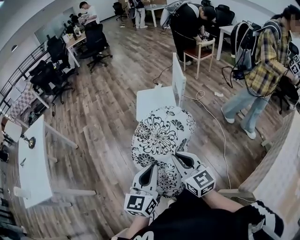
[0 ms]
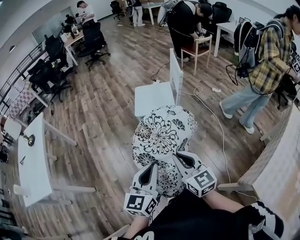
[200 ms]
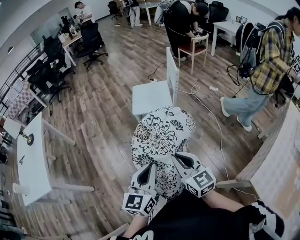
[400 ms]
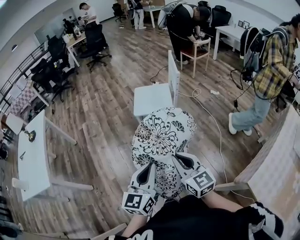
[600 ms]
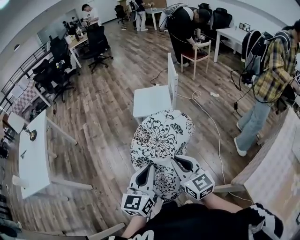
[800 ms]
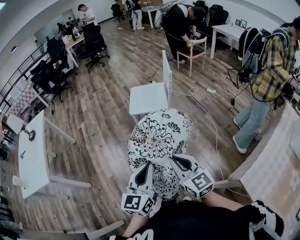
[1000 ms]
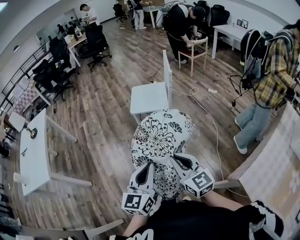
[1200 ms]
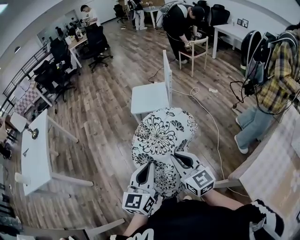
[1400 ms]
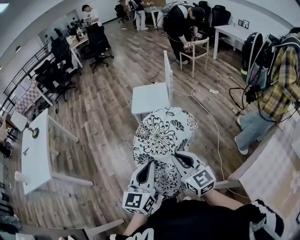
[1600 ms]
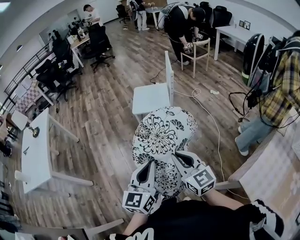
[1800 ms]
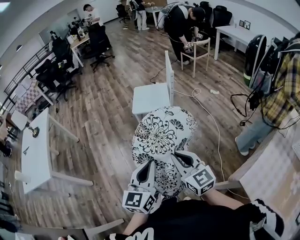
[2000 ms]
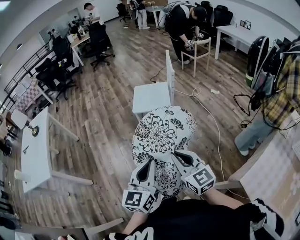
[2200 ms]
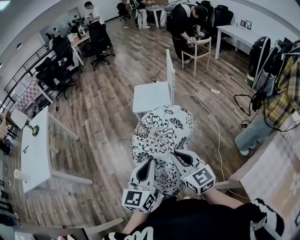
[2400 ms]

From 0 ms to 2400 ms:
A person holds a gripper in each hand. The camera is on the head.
From 0 ms to 1200 ms: The right gripper moves backward and to the right, about 15 cm. Meanwhile the left gripper is displaced backward by about 10 cm.
From 1200 ms to 2400 ms: Both grippers stay about where they are.

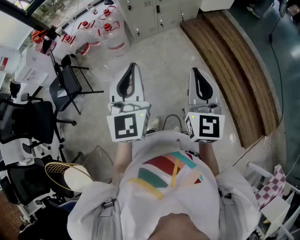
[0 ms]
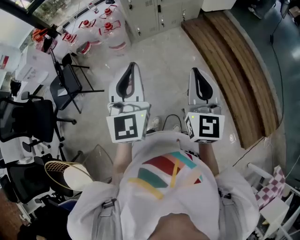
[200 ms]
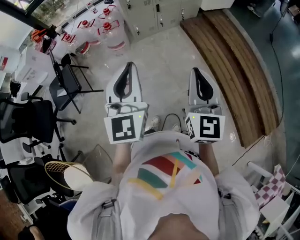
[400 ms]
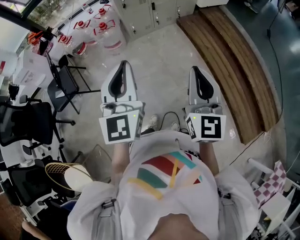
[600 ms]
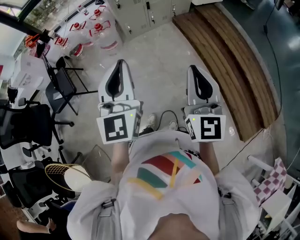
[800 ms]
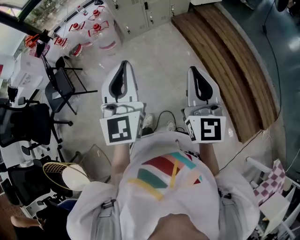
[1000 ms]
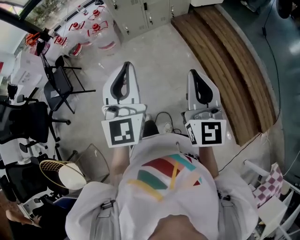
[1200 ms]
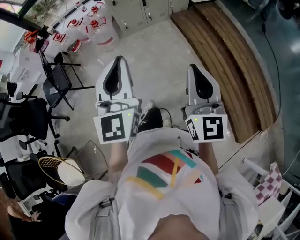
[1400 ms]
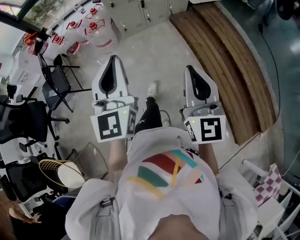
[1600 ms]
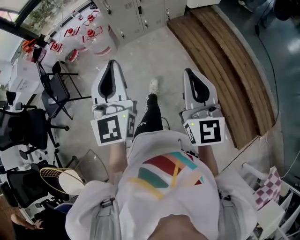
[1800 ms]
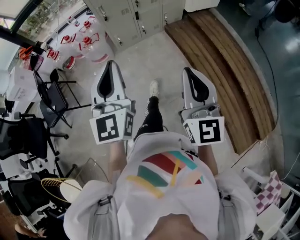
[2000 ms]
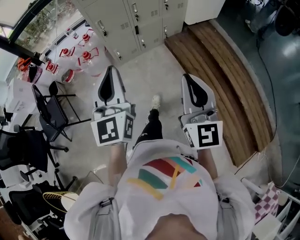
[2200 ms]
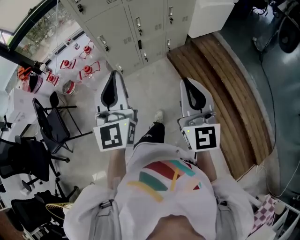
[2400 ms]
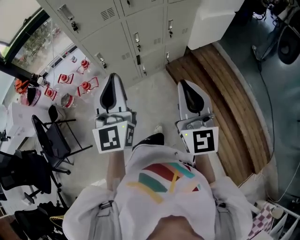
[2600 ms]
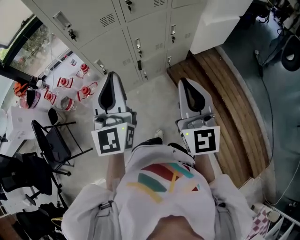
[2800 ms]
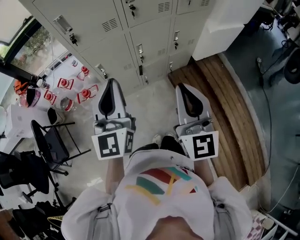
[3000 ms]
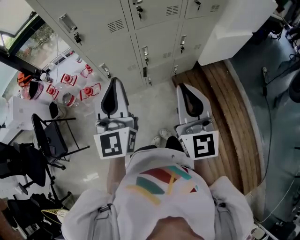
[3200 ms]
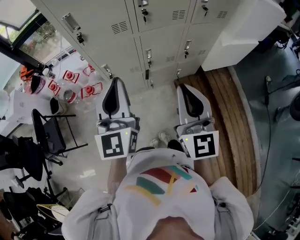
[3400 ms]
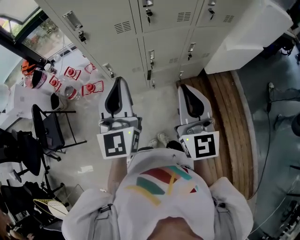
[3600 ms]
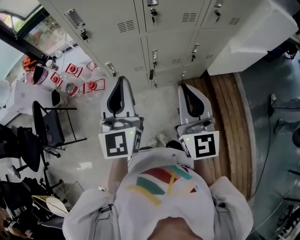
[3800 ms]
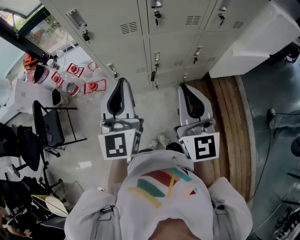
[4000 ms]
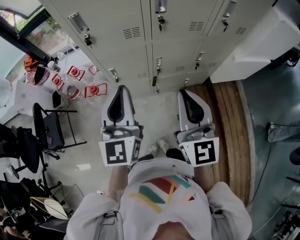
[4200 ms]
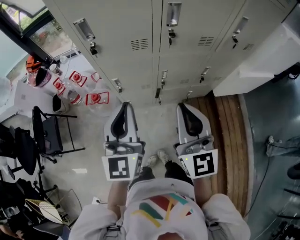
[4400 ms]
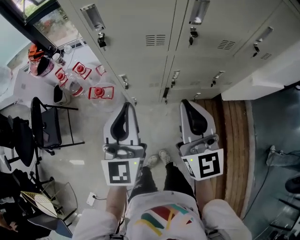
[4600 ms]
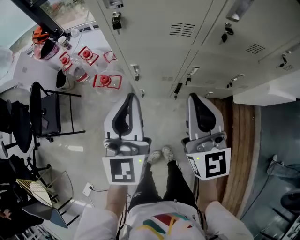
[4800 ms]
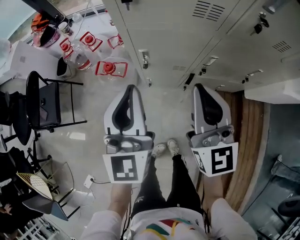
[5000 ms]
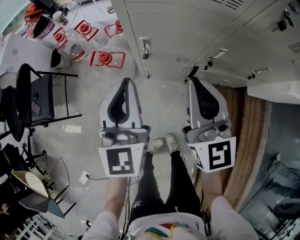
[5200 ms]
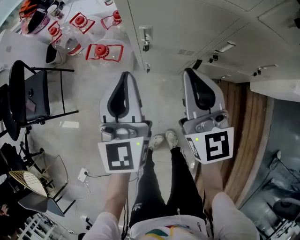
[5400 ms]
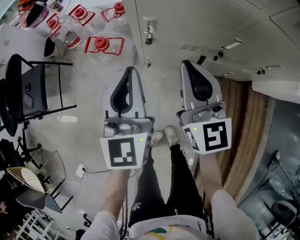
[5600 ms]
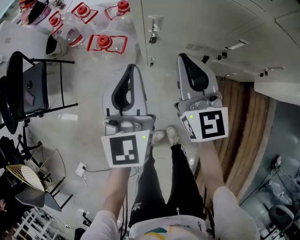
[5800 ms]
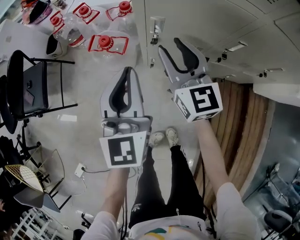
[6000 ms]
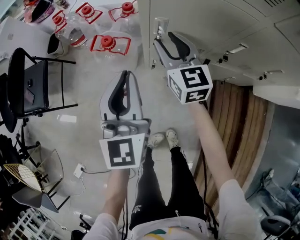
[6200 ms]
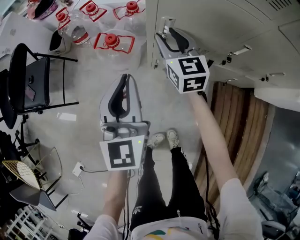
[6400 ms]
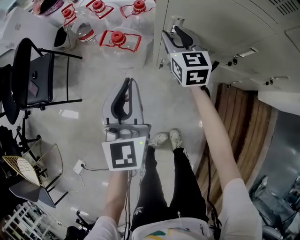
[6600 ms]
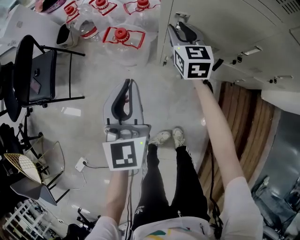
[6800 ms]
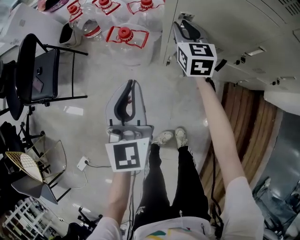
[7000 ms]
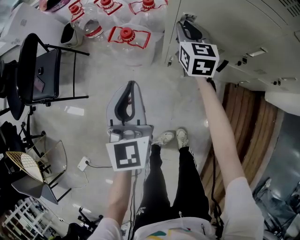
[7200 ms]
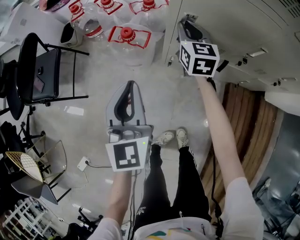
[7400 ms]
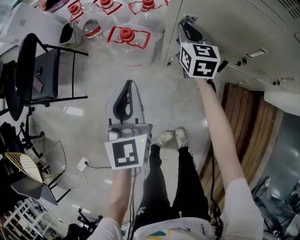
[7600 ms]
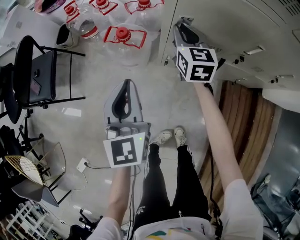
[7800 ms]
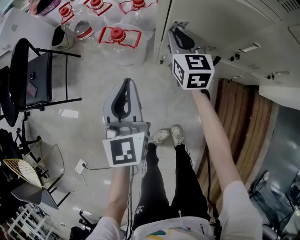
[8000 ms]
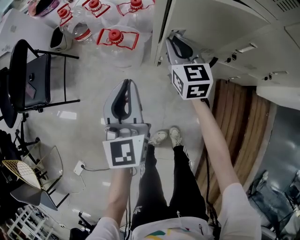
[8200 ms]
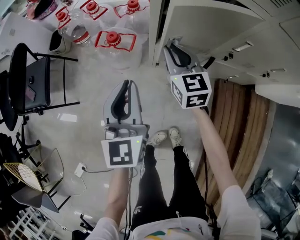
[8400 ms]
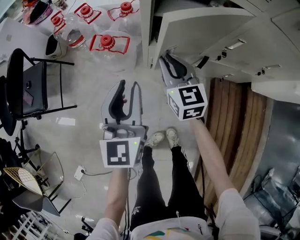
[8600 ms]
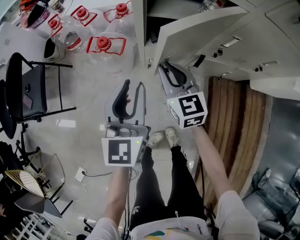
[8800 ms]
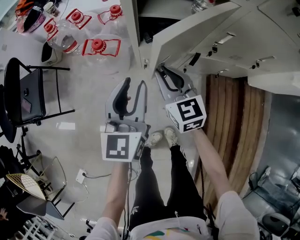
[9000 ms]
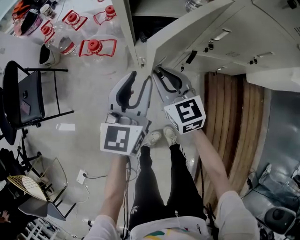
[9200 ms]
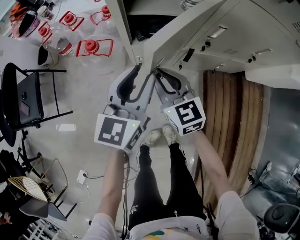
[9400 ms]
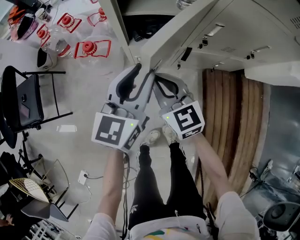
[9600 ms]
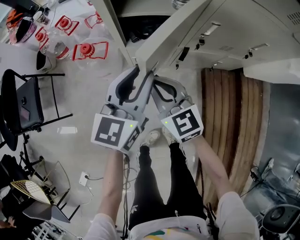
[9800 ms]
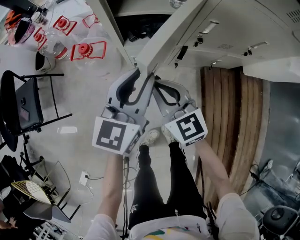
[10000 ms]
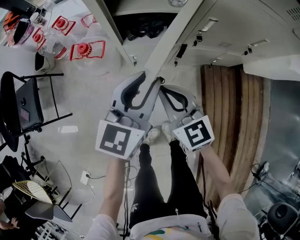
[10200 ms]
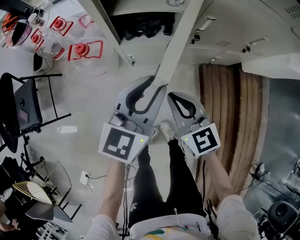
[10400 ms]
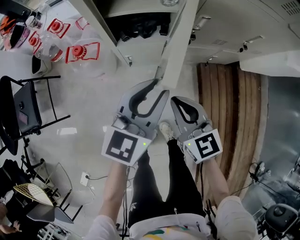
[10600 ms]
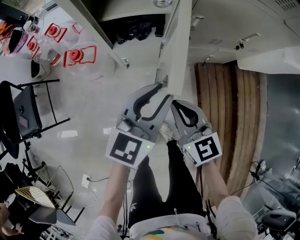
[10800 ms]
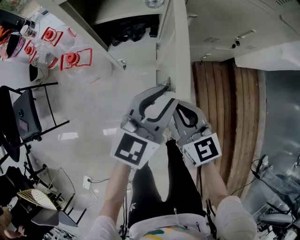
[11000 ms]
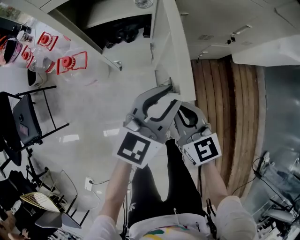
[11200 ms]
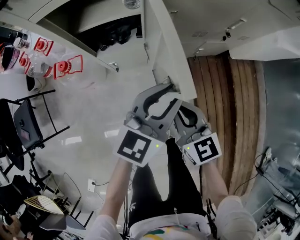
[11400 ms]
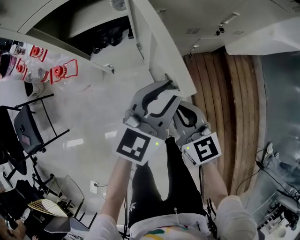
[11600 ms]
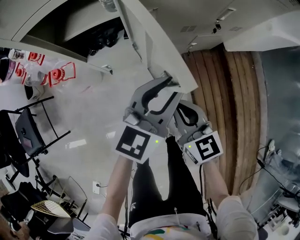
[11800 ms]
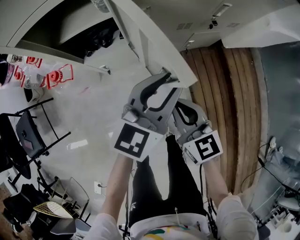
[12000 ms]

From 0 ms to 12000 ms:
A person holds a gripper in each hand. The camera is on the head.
From 0 ms to 1600 ms: The grippers both shift to the right by roughly 10 cm.
From 1600 ms to 3000 ms: The two grippers travel together, forward, roughly 50 cm.
From 3000 ms to 4400 ms: The left gripper moves forward, about 10 cm; the right gripper moves forward, roughly 15 cm.
From 4400 ms to 6000 ms: The right gripper heads downward, forward and to the left, covering about 40 cm, rotates about 20 degrees, and opens its fingers; the left gripper travels downward, to the left and forward by approximately 30 cm.
From 6000 ms to 7600 ms: The right gripper heads forward and downward, covering approximately 10 cm, and closes up. Meanwhile the left gripper is displaced to the left by roughly 10 cm.
From 7600 ms to 9000 ms: The right gripper moves backward, roughly 15 cm; the left gripper travels to the right by some 10 cm, and opens up.
From 9000 ms to 10400 ms: The left gripper shifts some 15 cm to the right, and rotates roughly 30 degrees. The right gripper heads backward and to the right, covering approximately 15 cm.
From 10400 ms to 12000 ms: The two grippers go roughly 15 cm to the right.

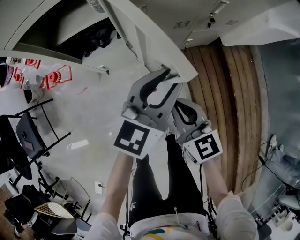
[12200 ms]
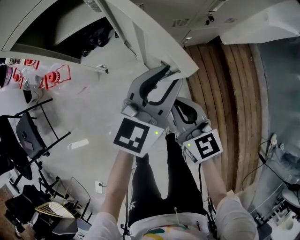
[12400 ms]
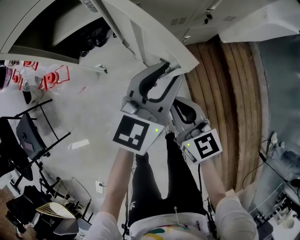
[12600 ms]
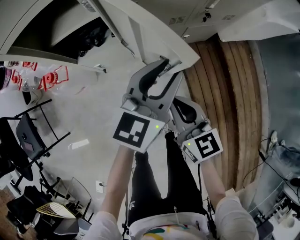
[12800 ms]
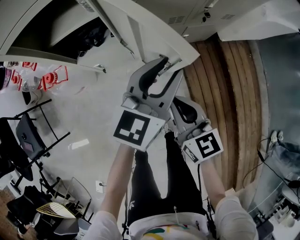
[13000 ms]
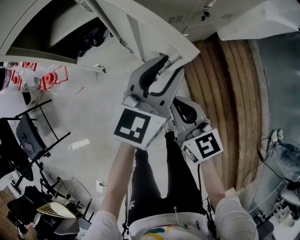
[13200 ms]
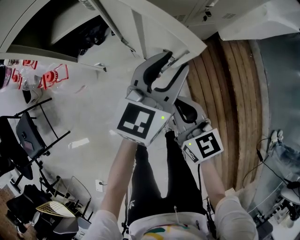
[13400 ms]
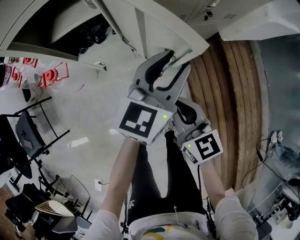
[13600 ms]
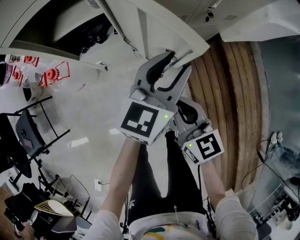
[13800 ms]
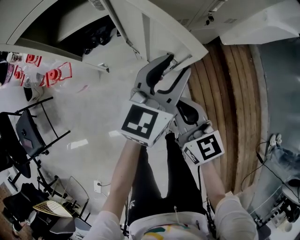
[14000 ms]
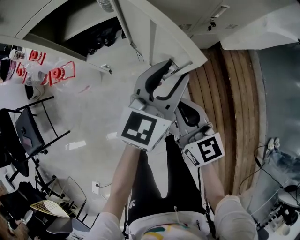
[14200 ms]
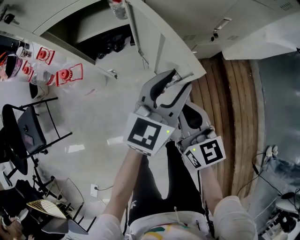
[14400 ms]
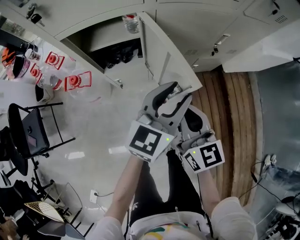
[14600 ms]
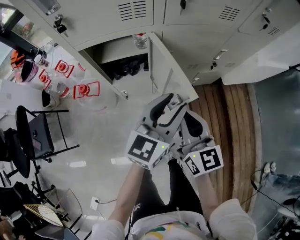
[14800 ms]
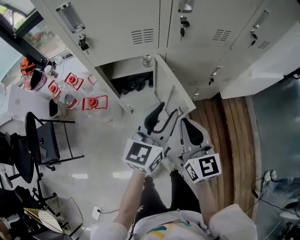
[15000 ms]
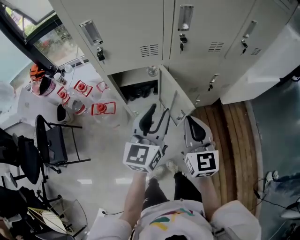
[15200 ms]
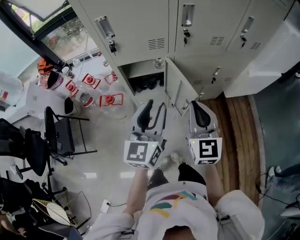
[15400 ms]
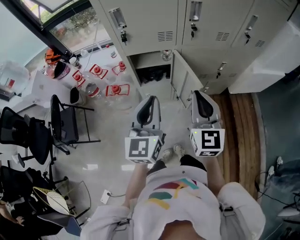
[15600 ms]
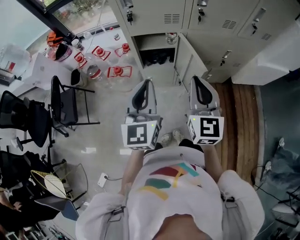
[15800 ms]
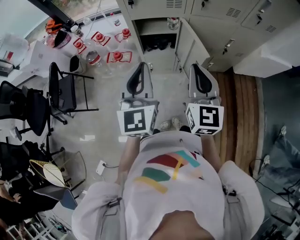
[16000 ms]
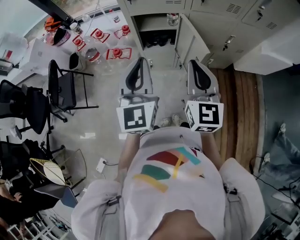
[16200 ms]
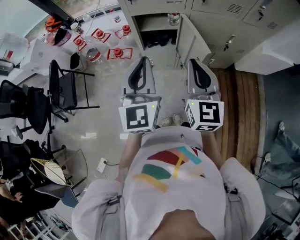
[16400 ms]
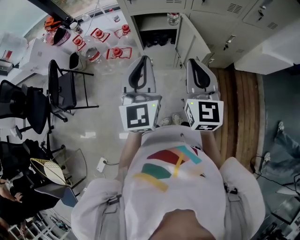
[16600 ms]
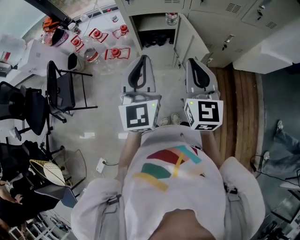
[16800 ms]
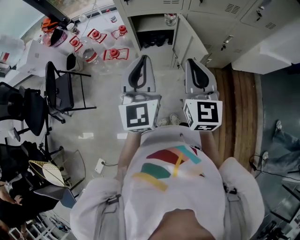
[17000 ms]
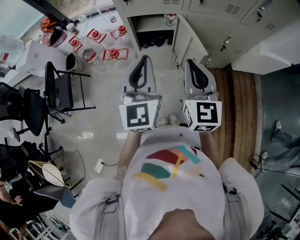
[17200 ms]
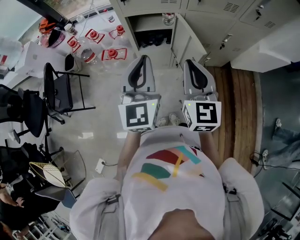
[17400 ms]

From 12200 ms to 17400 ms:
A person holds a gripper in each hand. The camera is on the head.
From 12200 ms to 14000 ms: The grippers move only a little.
From 14000 ms to 15600 ms: The left gripper travels upward, to the left and backward by approximately 35 cm, swivels approximately 40 degrees, and closes. The right gripper is displaced upward by roughly 30 cm, and changes its angle by about 30 degrees.
From 15600 ms to 17400 ms: The grippers stay close to where they were, moving slightly.

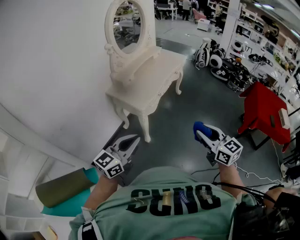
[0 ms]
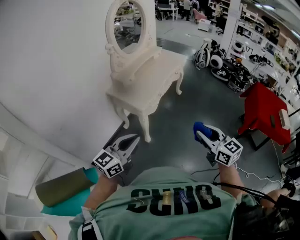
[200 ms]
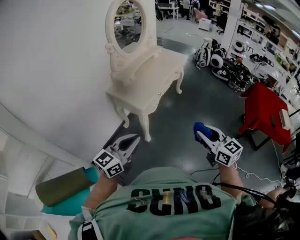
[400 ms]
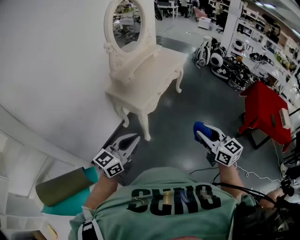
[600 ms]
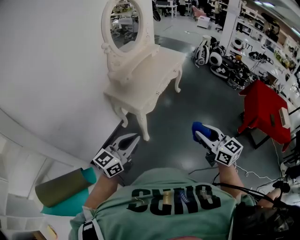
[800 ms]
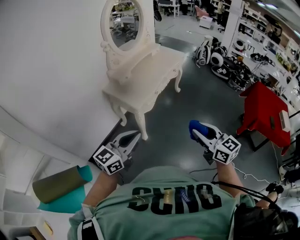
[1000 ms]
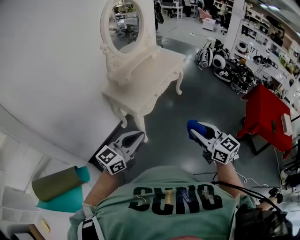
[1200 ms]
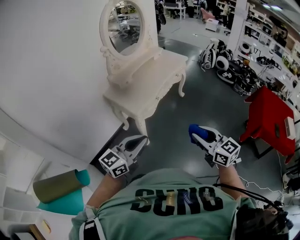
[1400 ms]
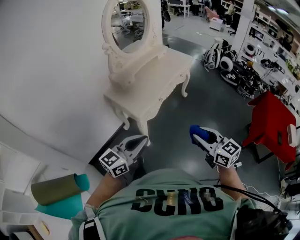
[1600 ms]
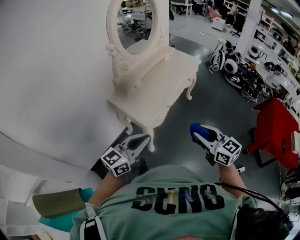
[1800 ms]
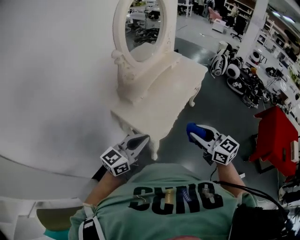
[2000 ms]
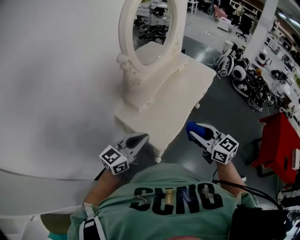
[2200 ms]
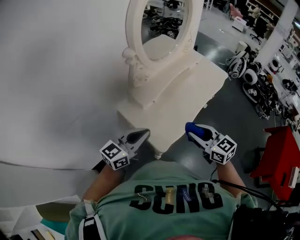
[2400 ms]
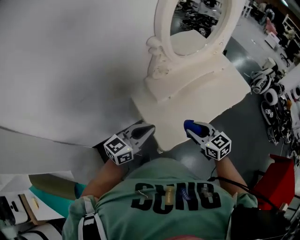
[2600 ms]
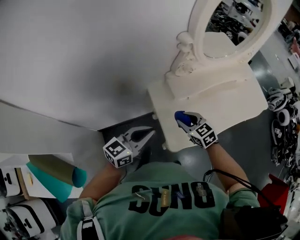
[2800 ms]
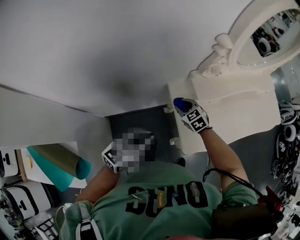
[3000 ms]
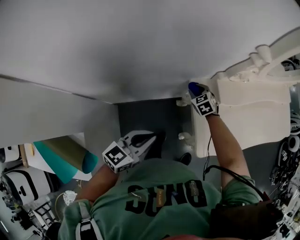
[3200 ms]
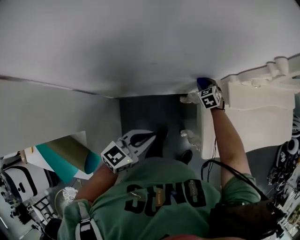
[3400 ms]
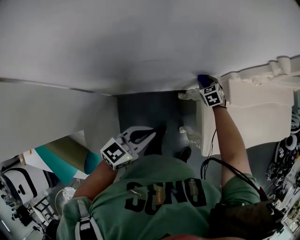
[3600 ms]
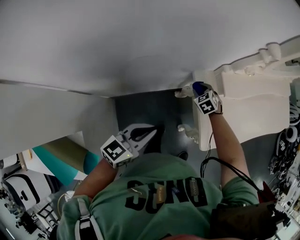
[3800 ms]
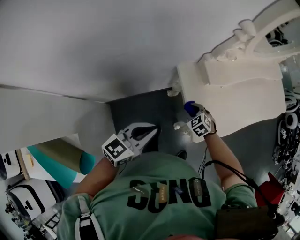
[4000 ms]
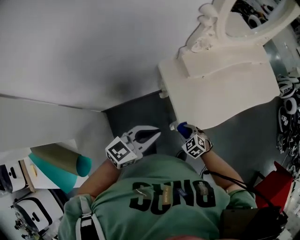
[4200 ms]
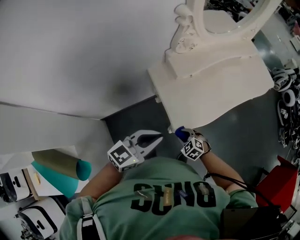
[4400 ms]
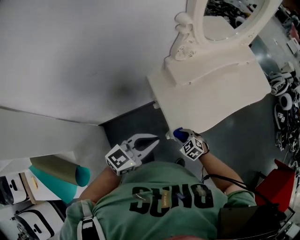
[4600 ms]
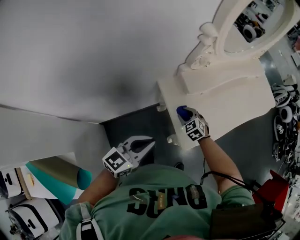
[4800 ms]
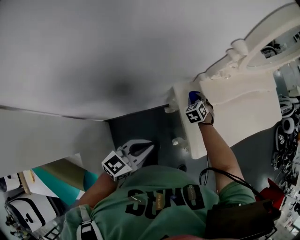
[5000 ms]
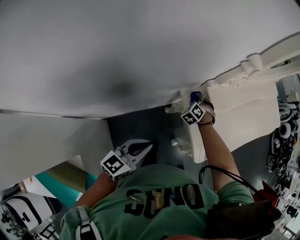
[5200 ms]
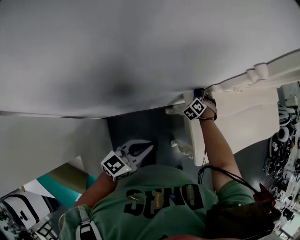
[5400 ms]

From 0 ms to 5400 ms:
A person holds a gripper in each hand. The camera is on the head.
From 0 ms to 1400 ms: The left gripper is displaced to the right and forward by roughly 10 cm; the right gripper travels forward and to the right by roughly 10 cm.
From 1400 ms to 2800 ms: Both grippers are carried some 60 cm. The right gripper turns by approximately 50 degrees, while the left gripper turns by roughly 30 degrees.
From 2800 ms to 4000 ms: The left gripper shifts some 15 cm to the left and downward. Meanwhile the right gripper travels downward and to the left by roughly 25 cm, reaches approximately 20 cm forward, then returns, and swivels roughly 30 degrees.
From 4000 ms to 5400 ms: The right gripper ends up approximately 25 cm from where it was, and changes its angle by roughly 40 degrees.
